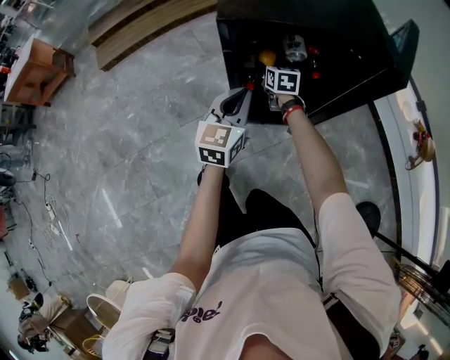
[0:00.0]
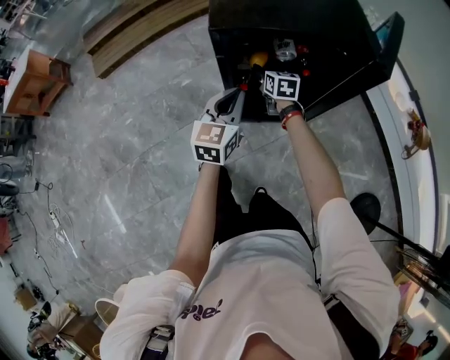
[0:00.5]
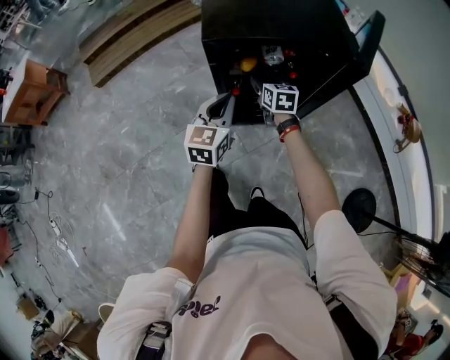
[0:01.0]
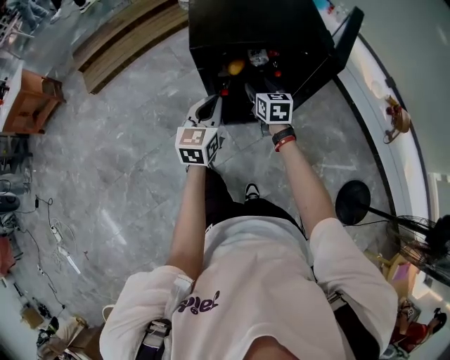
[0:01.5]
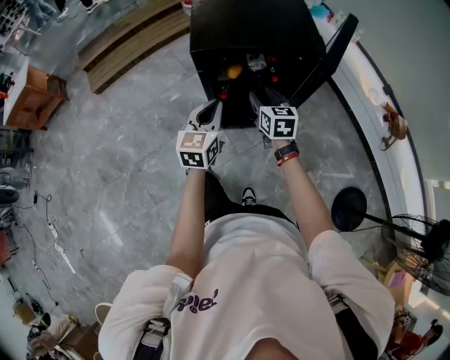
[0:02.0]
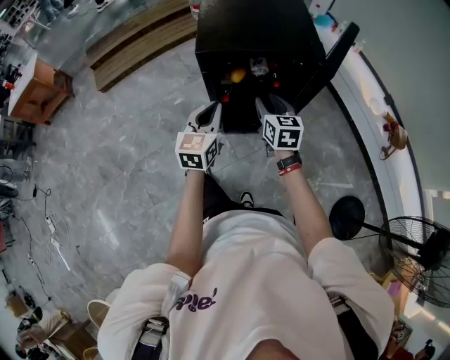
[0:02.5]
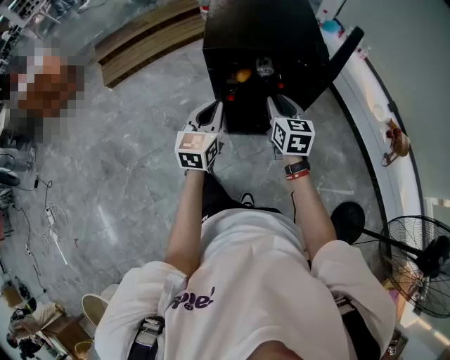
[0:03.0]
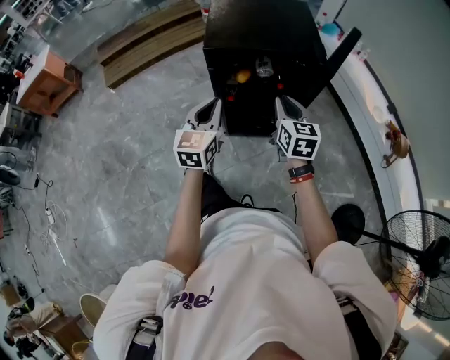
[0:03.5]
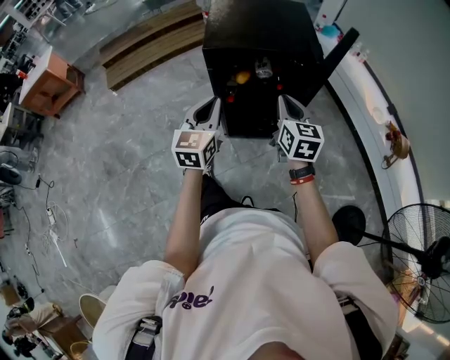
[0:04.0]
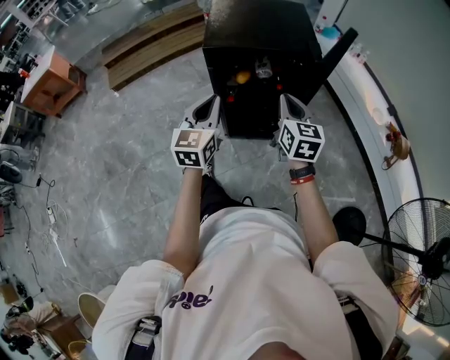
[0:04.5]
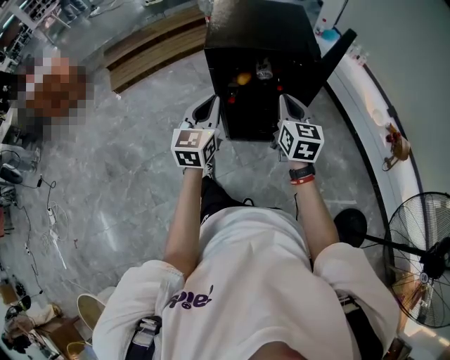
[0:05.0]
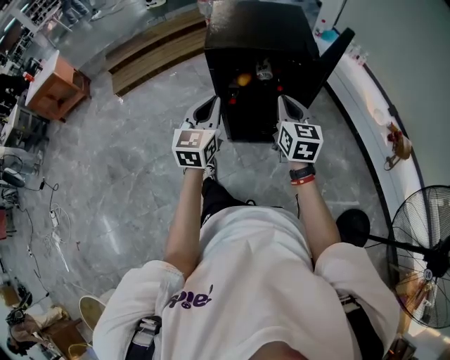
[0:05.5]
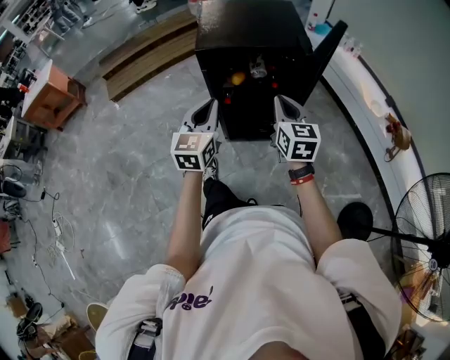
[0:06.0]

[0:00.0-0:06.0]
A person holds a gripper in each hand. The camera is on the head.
0:00.0 to 0:02.0: The right gripper heads upward and backward, covering roughly 30 cm, and closes its fingers, while the left gripper is displaced upward and backward by approximately 15 cm.
0:02.0 to 0:04.0: The right gripper heads upward, backward and to the right, covering roughly 15 cm, and closes. The left gripper shifts roughly 10 cm upward and backward.
0:04.0 to 0:06.0: There are only small adjustments of the grippers.

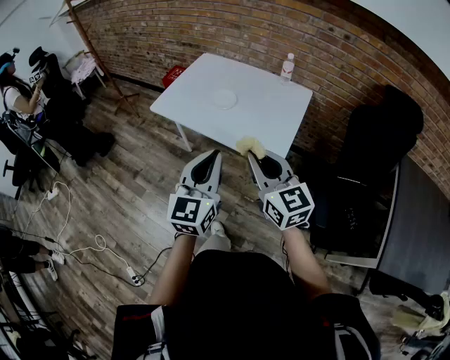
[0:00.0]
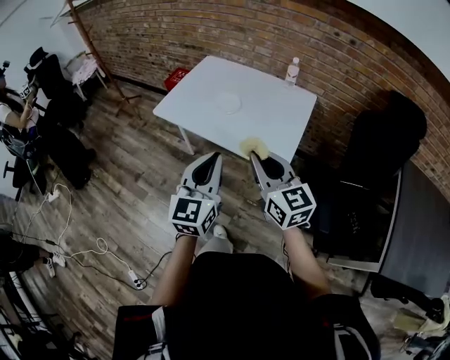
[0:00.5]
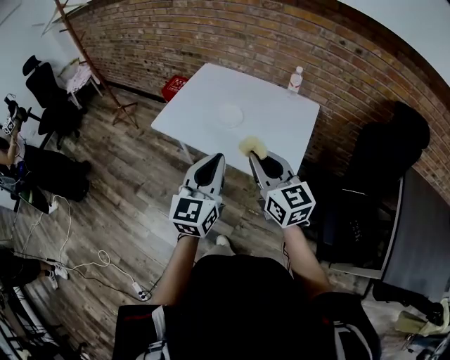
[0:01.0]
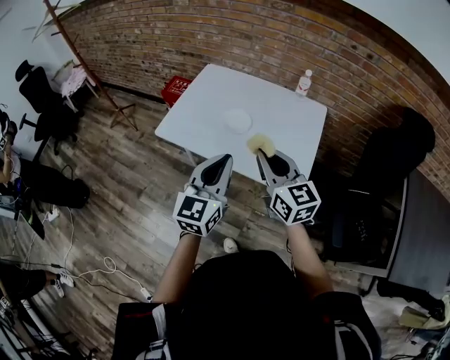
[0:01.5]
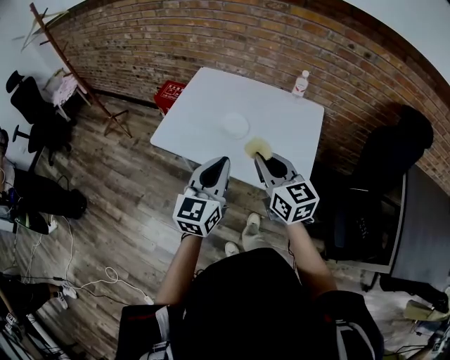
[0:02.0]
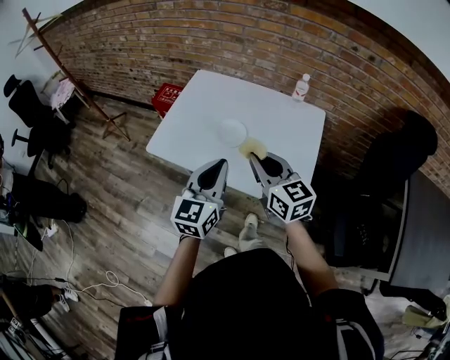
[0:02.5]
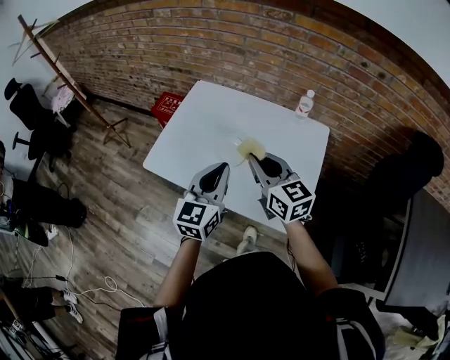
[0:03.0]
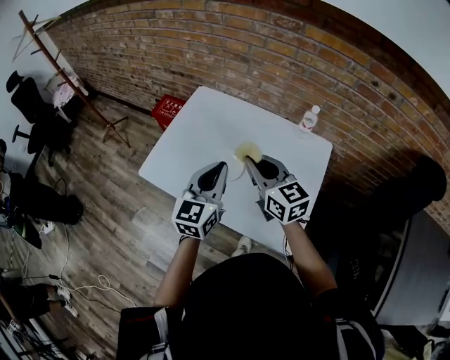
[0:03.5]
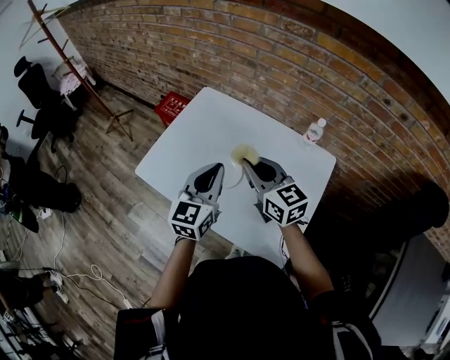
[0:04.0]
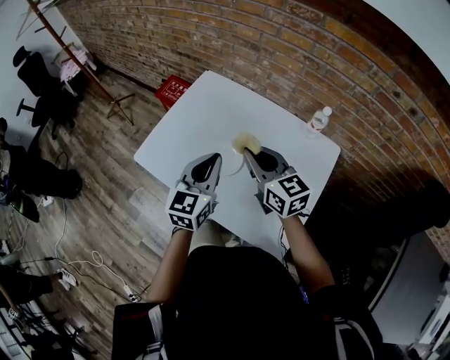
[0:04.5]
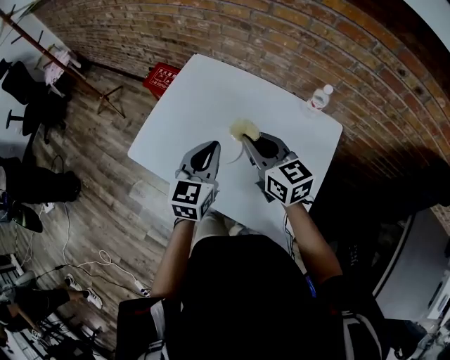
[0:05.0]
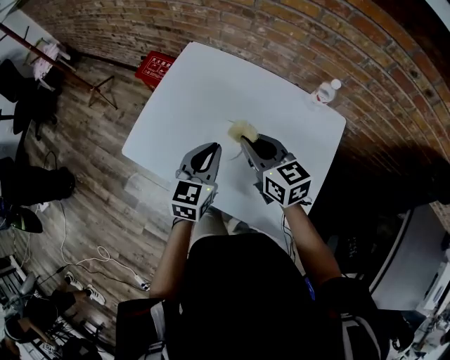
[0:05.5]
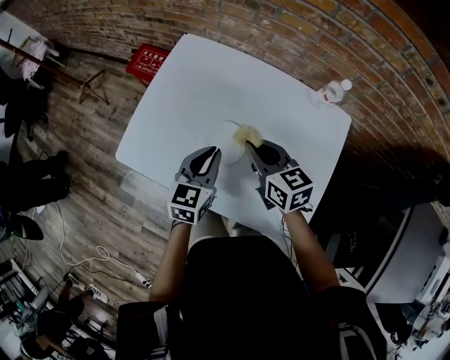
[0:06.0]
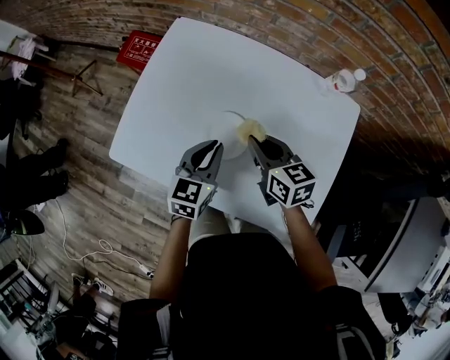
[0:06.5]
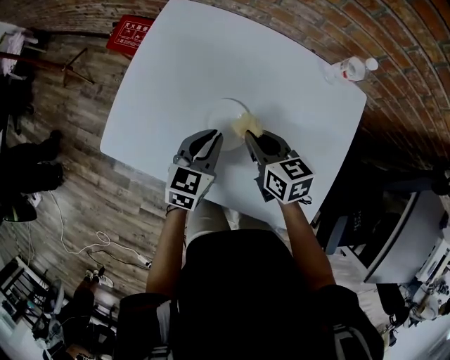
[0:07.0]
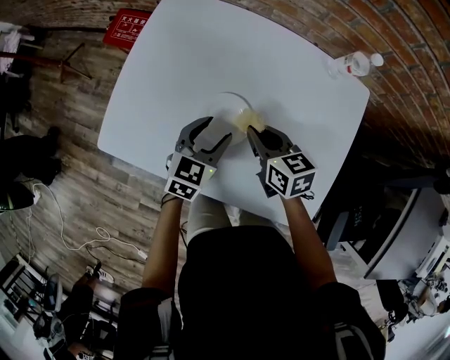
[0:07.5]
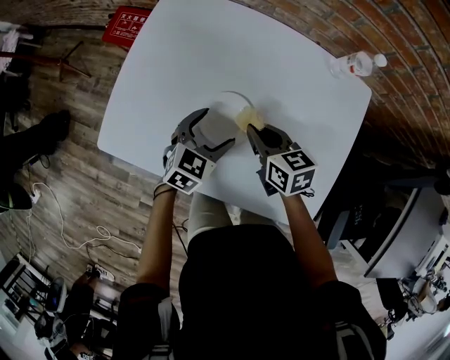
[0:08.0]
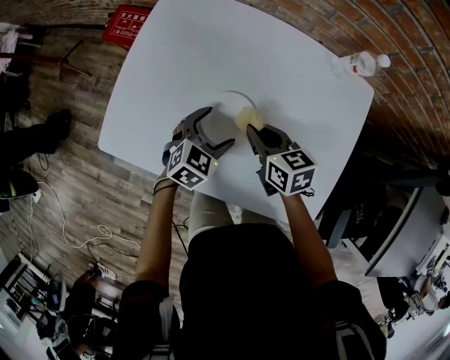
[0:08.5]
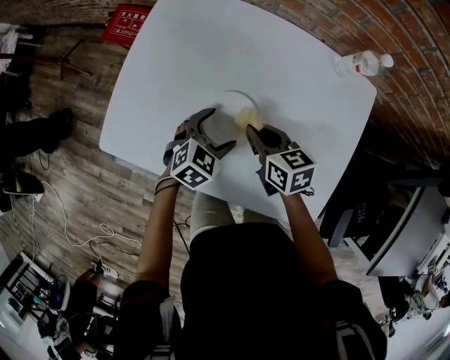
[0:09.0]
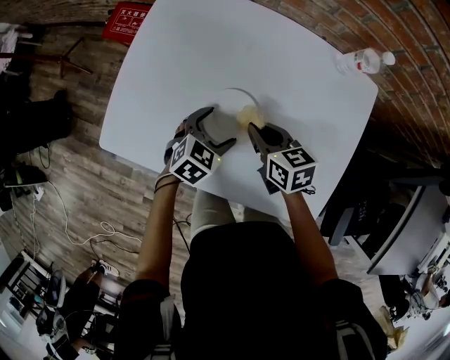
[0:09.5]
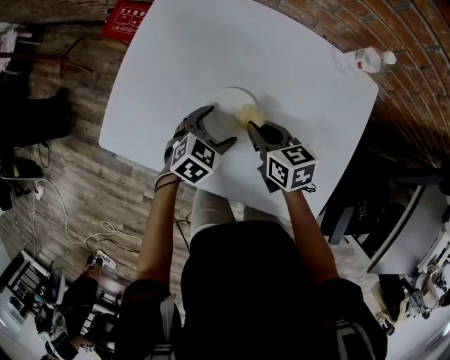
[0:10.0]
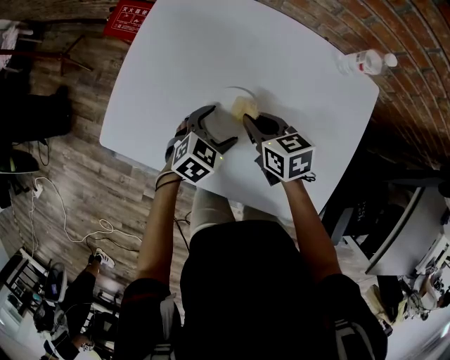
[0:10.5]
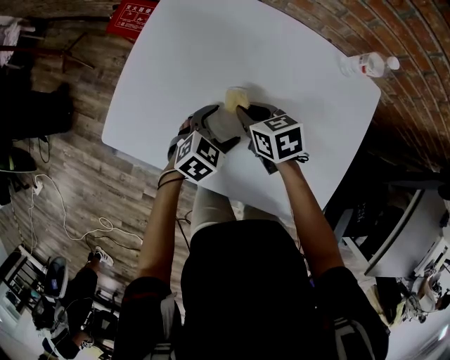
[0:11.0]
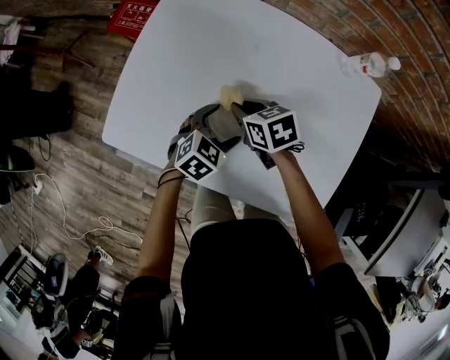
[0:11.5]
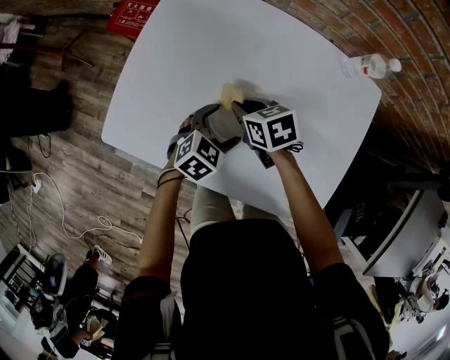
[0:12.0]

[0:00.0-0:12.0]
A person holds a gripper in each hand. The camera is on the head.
0:00.0 to 0:02.0: The grippers both shift forward by approximately 20 cm.
0:02.0 to 0:04.0: Both grippers move forward, about 25 cm.
0:04.0 to 0:06.0: Both grippers move downward, approximately 15 cm. The right gripper changes its angle by some 20 degrees; the left gripper turns by some 20 degrees.
0:06.0 to 0:08.0: Both grippers move downward, about 10 cm. The left gripper swivels some 30 degrees, and opens up.
0:08.0 to 0:10.0: The grippers make only small movements.
0:10.0 to 0:12.0: The right gripper travels to the left by approximately 5 cm.

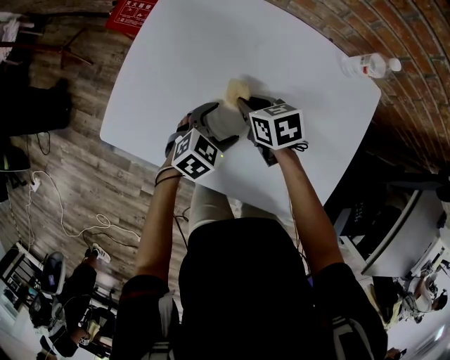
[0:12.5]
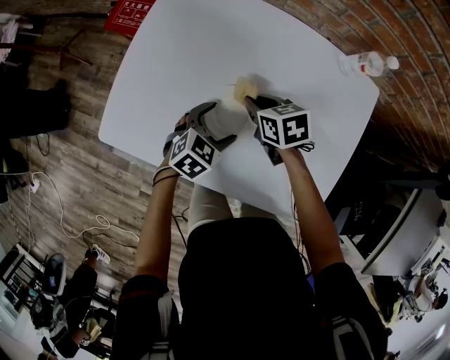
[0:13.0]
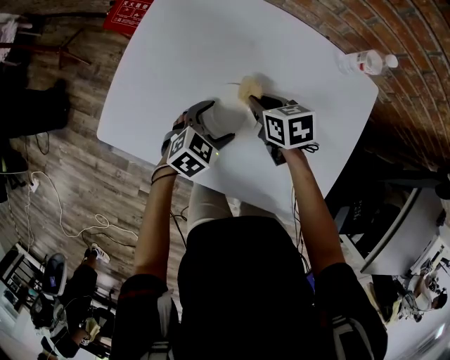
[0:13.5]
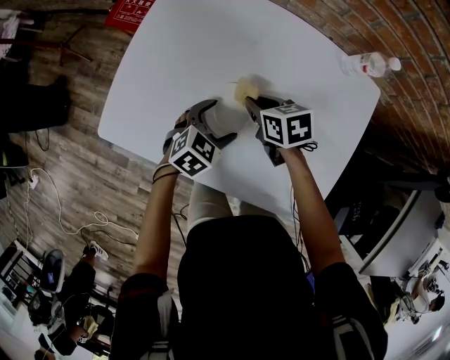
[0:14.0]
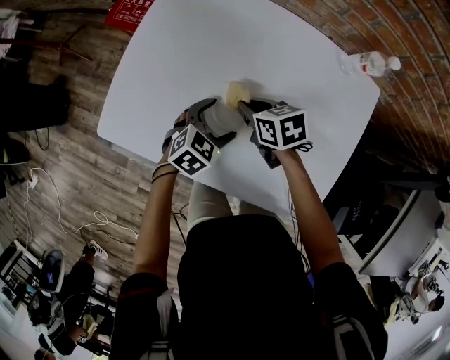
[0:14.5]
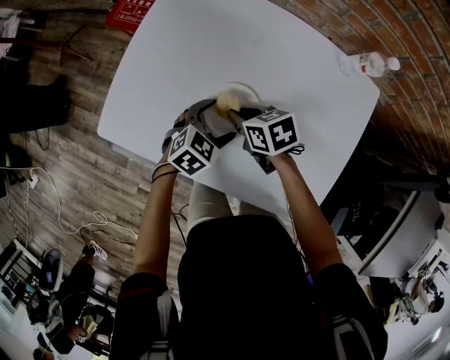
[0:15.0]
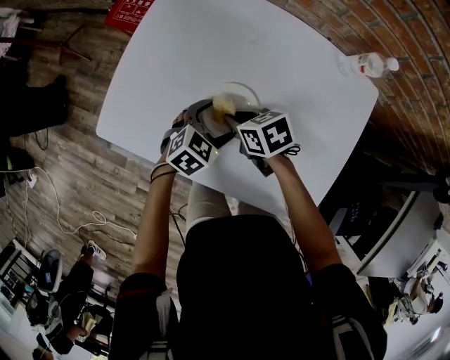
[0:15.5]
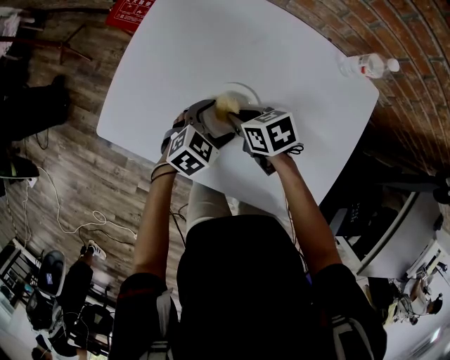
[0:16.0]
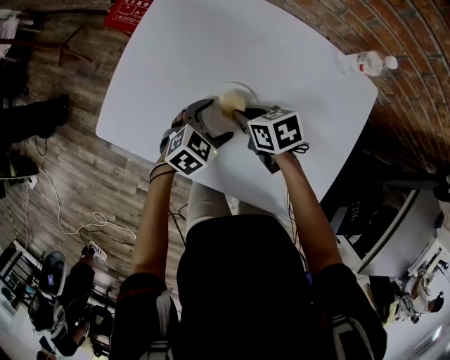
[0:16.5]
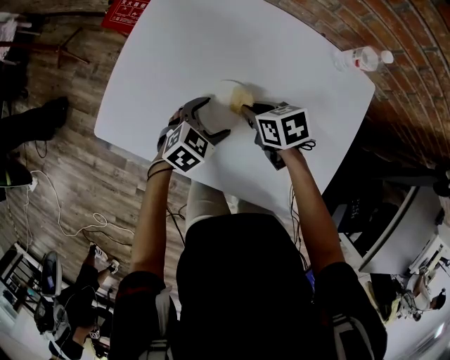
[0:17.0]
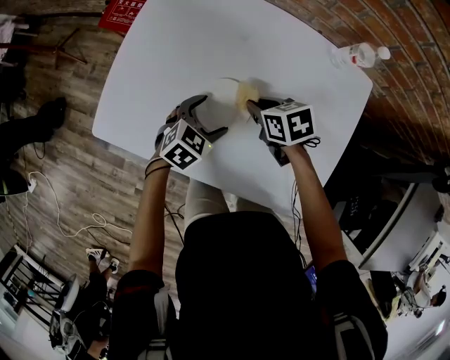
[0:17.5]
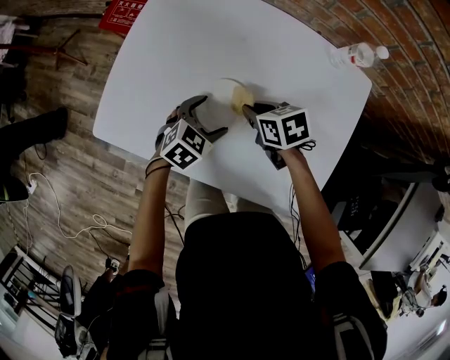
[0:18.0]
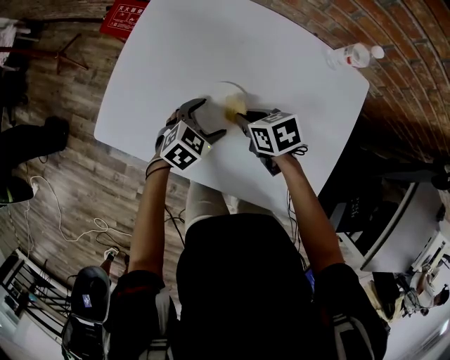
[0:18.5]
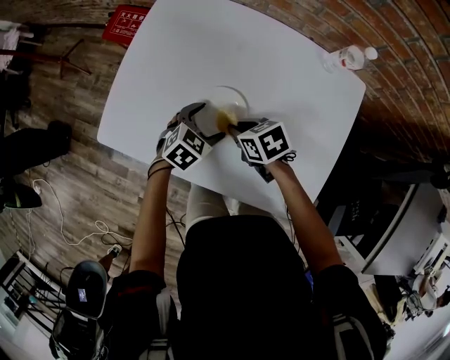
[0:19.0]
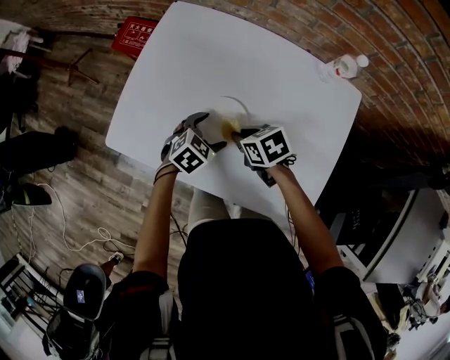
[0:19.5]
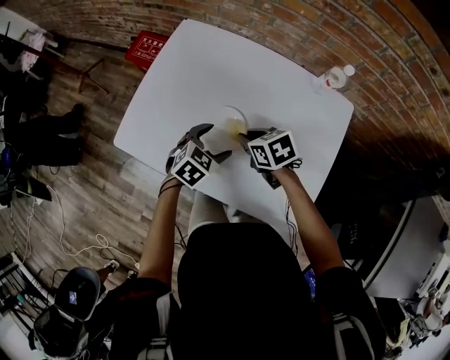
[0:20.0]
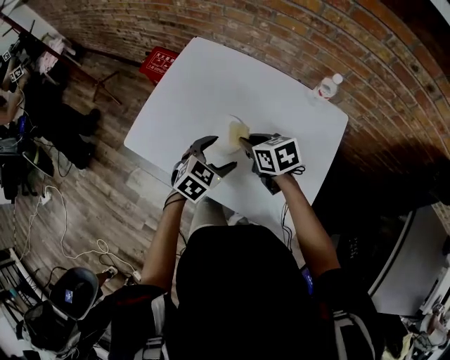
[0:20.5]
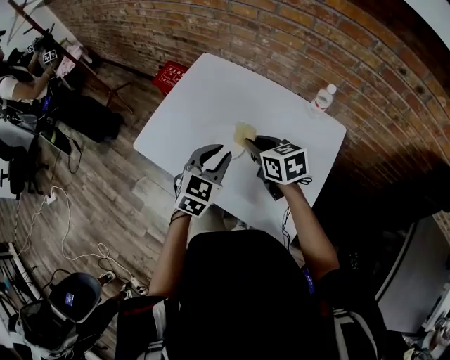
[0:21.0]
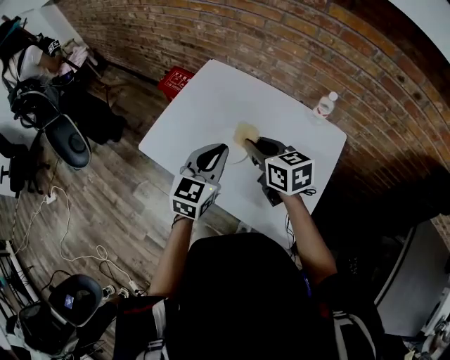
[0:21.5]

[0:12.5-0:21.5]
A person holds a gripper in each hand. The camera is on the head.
0:12.5 to 0:17.0: The grippers stay close to where they were, moving slightly.
0:17.0 to 0:19.5: The grippers move only a little.
0:19.5 to 0:21.5: Both grippers move upward, some 25 cm. The left gripper points its fingers about 40 degrees further upward, and closes; the right gripper swivels some 30 degrees.
